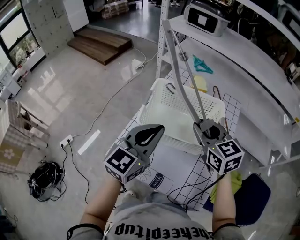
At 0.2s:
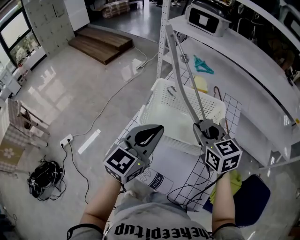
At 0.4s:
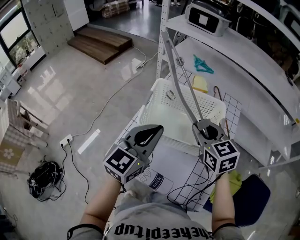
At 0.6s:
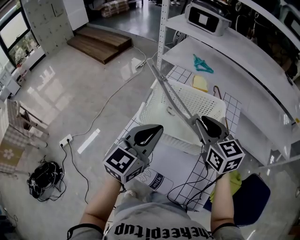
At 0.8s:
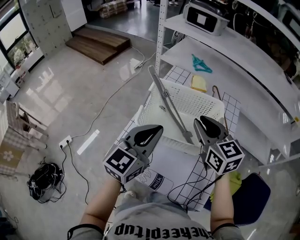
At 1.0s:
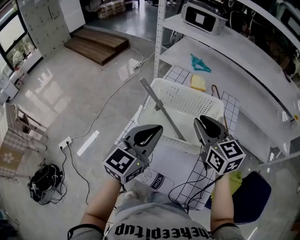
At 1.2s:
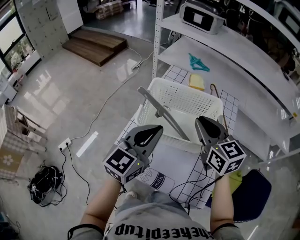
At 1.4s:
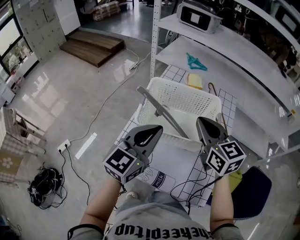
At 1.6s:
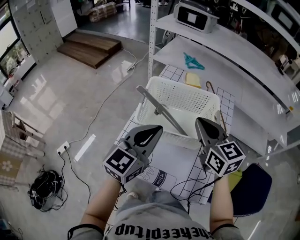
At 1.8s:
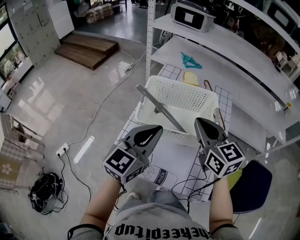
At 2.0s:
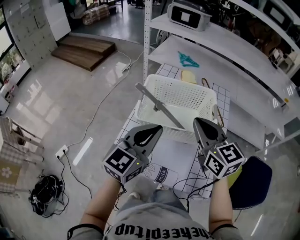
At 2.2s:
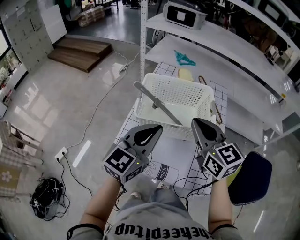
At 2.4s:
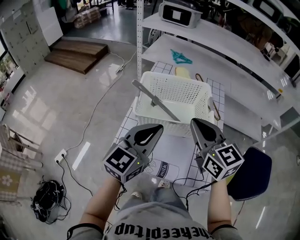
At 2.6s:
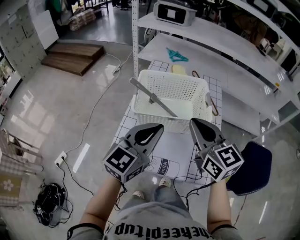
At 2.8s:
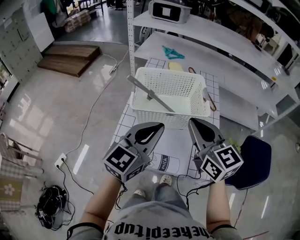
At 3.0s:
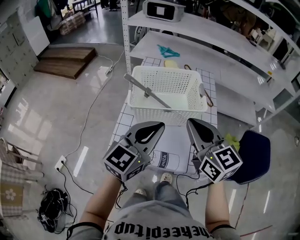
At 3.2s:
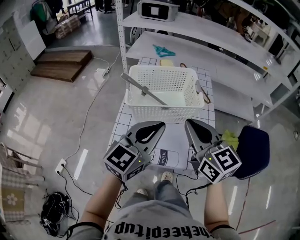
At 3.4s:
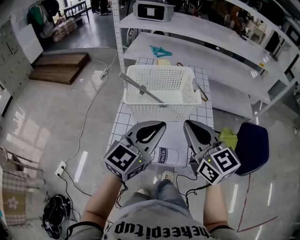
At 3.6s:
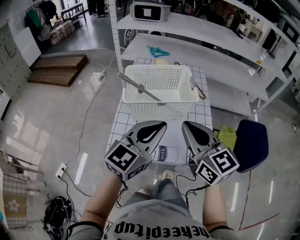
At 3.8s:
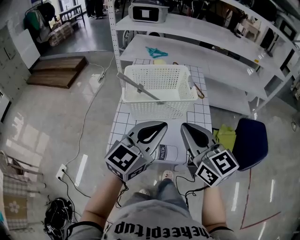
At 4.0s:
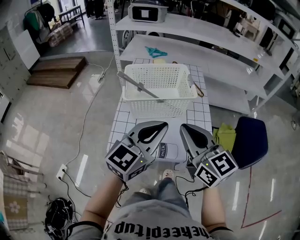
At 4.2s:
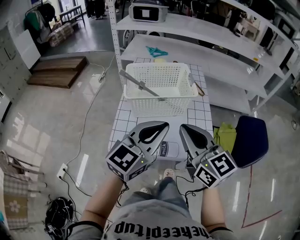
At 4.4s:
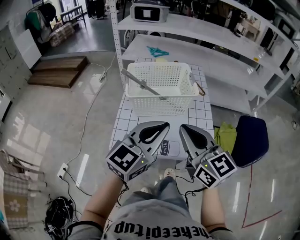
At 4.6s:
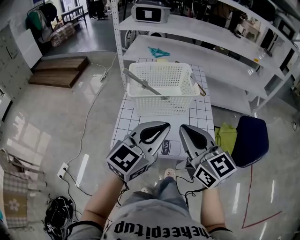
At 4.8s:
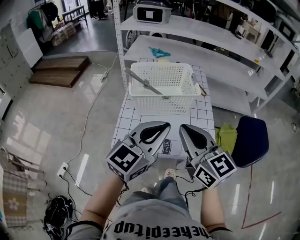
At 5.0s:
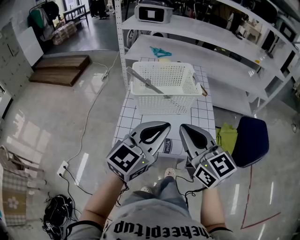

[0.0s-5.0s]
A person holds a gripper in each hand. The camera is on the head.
0.0s to 1.6s: The right gripper closes its fingers.
1.6s to 3.4s: The left gripper is displaced backward by roughly 10 cm; the right gripper shifts about 15 cm backward.
3.4s to 5.0s: The grippers both shift backward by approximately 10 cm.

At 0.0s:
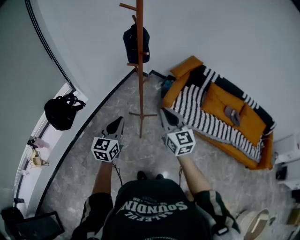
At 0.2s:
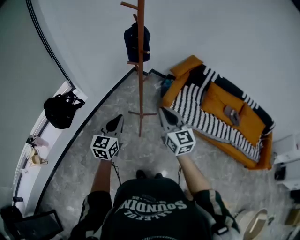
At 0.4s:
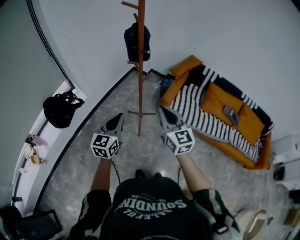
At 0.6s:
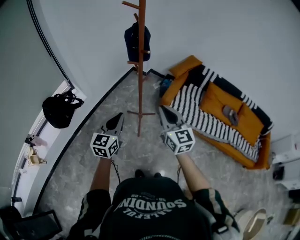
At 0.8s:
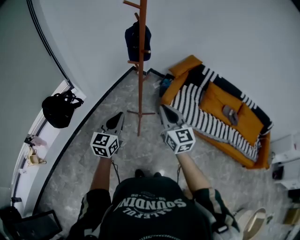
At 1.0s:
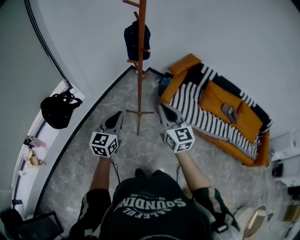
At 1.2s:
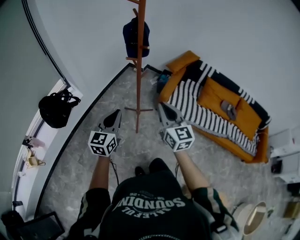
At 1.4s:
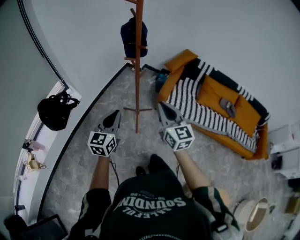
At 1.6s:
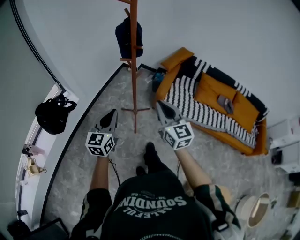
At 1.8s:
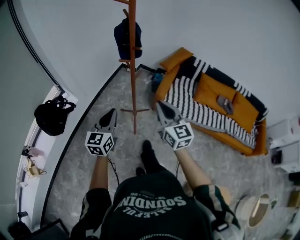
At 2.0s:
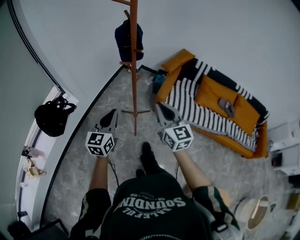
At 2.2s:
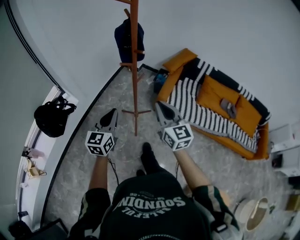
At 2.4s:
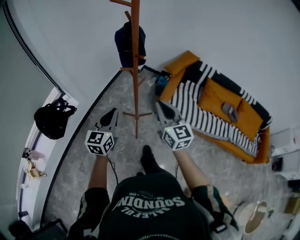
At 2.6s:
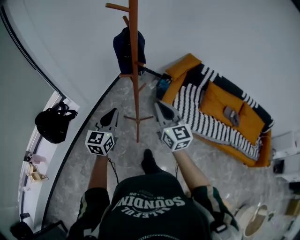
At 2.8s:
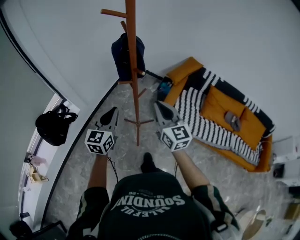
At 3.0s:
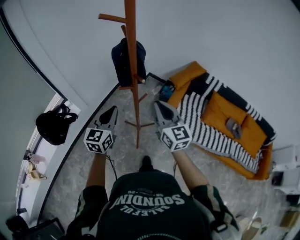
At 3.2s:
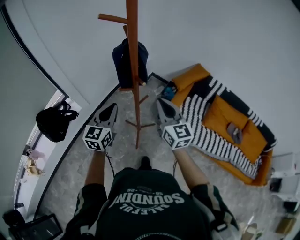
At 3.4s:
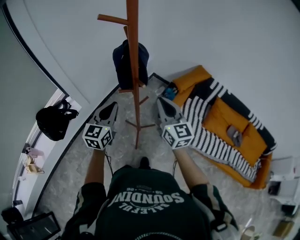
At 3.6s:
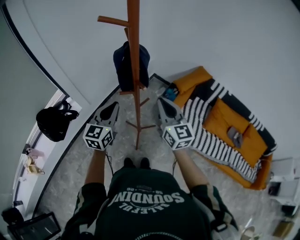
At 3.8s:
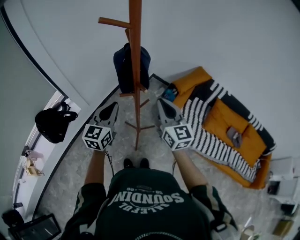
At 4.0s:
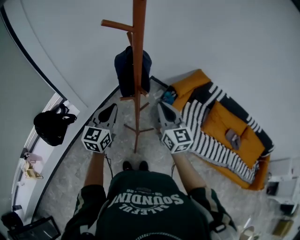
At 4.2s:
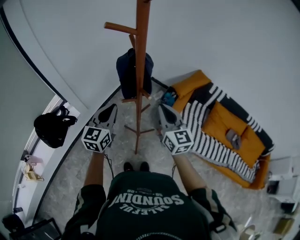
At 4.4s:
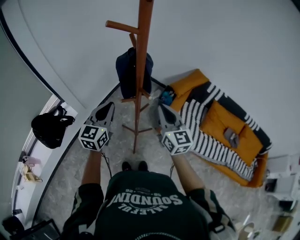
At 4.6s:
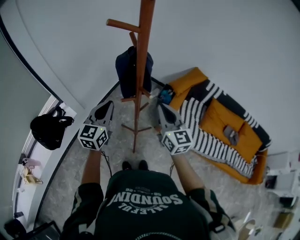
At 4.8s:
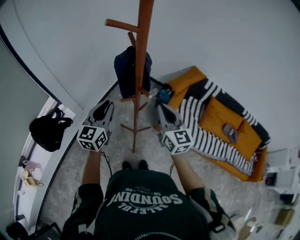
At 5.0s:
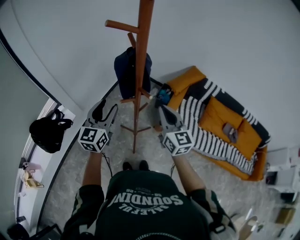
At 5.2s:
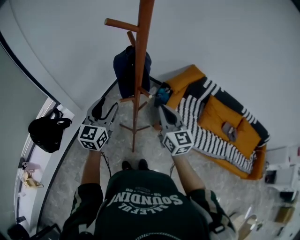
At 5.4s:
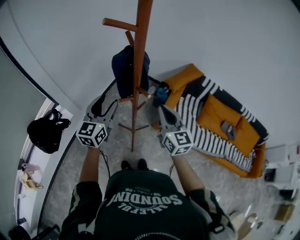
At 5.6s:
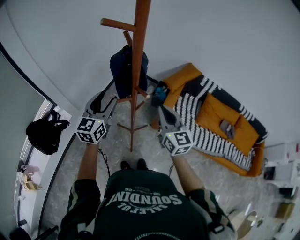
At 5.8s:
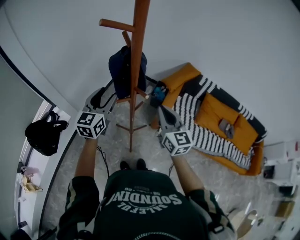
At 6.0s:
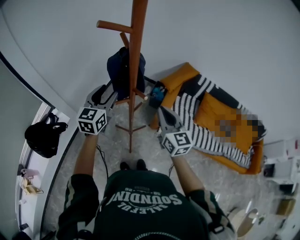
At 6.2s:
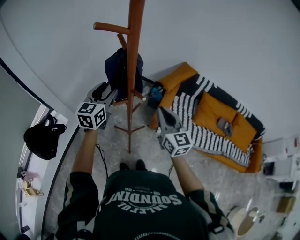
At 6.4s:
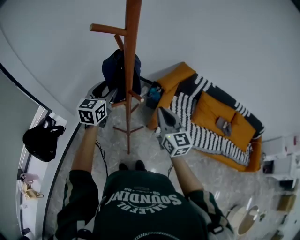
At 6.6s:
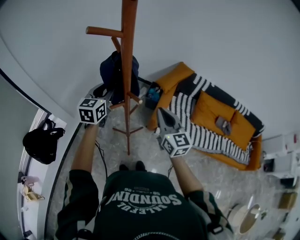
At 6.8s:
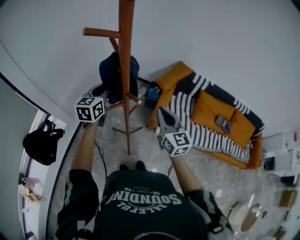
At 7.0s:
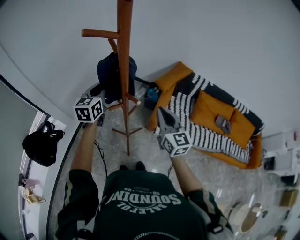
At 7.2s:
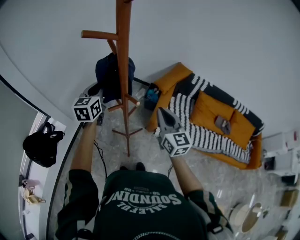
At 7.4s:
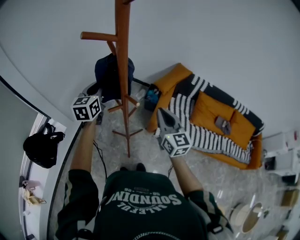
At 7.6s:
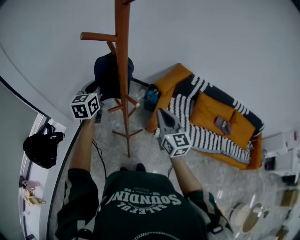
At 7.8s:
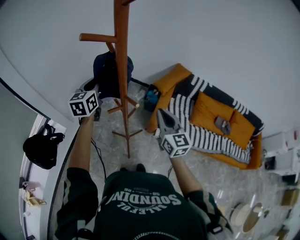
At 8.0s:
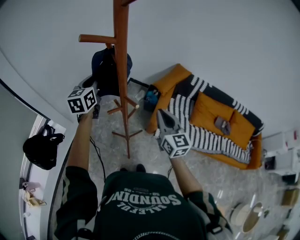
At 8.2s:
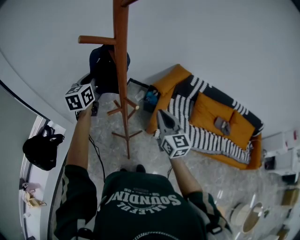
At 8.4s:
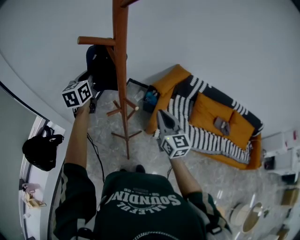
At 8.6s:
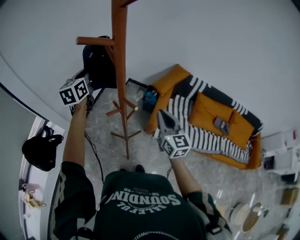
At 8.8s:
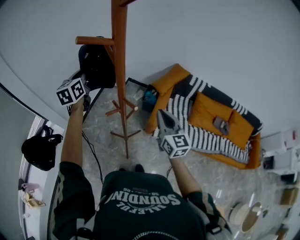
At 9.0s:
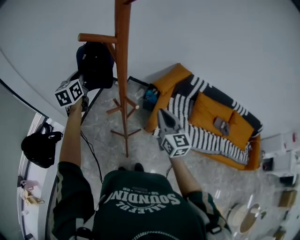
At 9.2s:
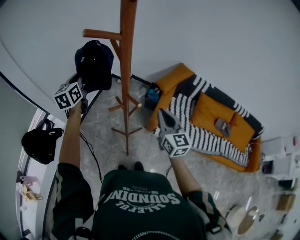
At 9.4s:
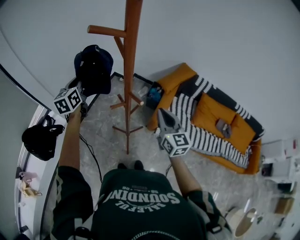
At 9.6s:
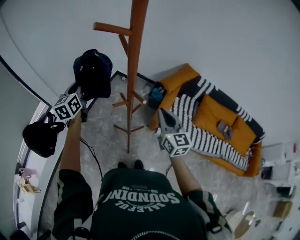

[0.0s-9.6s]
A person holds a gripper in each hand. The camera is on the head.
0.0s to 1.6s: The grippers move only a little.
1.6s to 3.2s: The grippers both shift forward by roughly 25 cm.
3.2s to 4.8s: The left gripper heads forward, covering some 5 cm.
4.8s to 6.4s: The left gripper heads forward, covering some 10 cm, and opens.
6.4s to 8.0s: The left gripper is displaced forward by about 5 cm, and closes.
8.0s to 9.6s: The left gripper moves to the left, some 10 cm.

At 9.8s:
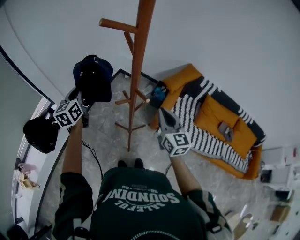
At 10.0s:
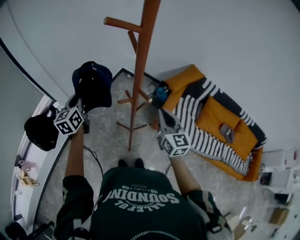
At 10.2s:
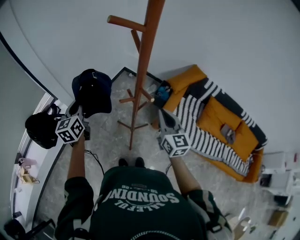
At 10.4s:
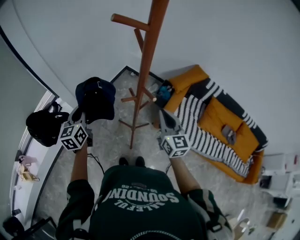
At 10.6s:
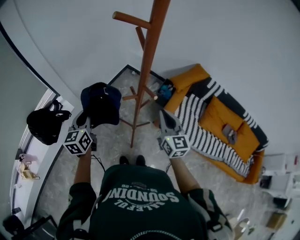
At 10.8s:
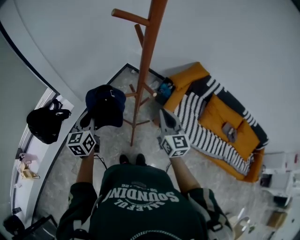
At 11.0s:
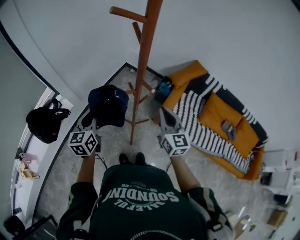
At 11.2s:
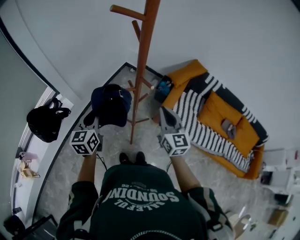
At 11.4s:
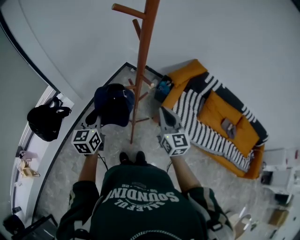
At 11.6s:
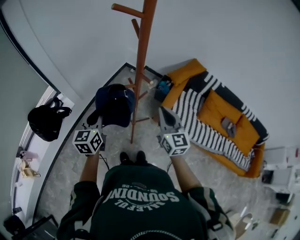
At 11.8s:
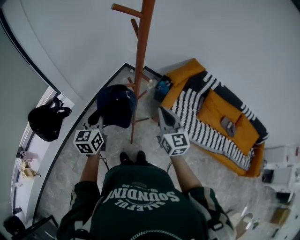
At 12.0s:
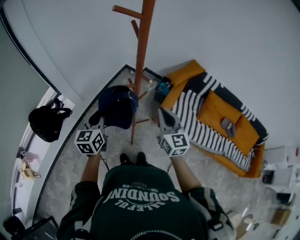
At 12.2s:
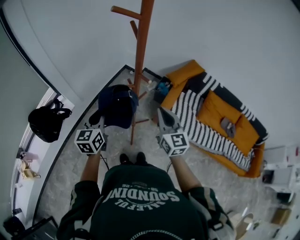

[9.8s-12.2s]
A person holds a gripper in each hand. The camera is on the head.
9.8s to 11.0s: The left gripper travels backward by about 15 cm.
11.0s to 12.2s: The right gripper ends up some 5 cm from where it was; the left gripper moves approximately 5 cm.

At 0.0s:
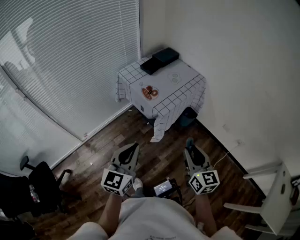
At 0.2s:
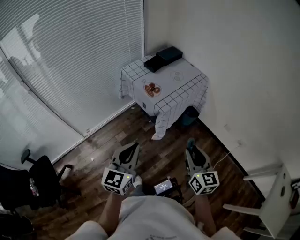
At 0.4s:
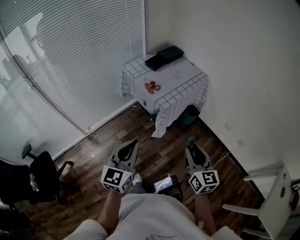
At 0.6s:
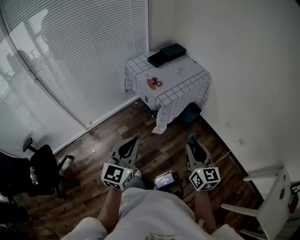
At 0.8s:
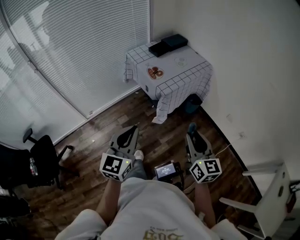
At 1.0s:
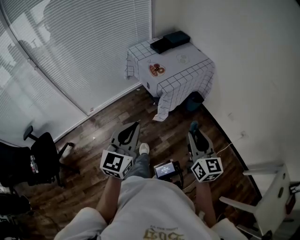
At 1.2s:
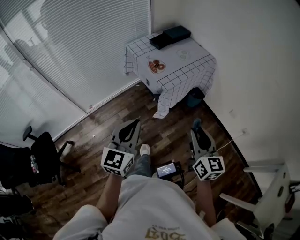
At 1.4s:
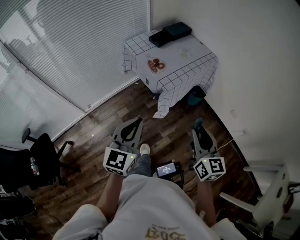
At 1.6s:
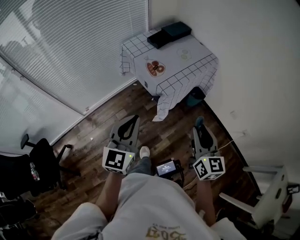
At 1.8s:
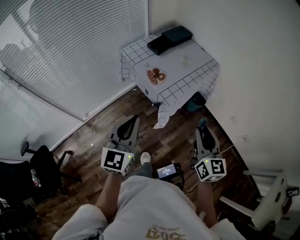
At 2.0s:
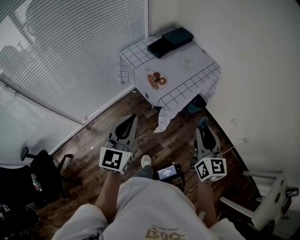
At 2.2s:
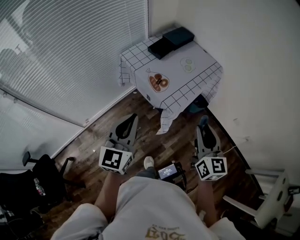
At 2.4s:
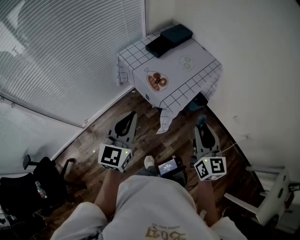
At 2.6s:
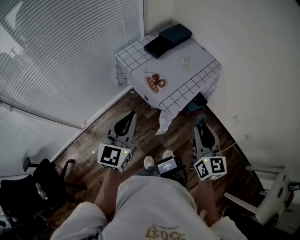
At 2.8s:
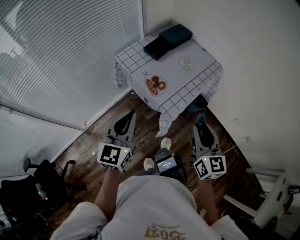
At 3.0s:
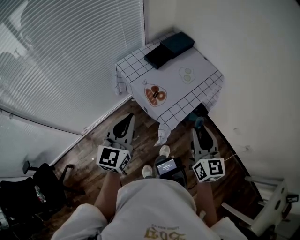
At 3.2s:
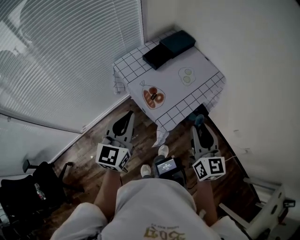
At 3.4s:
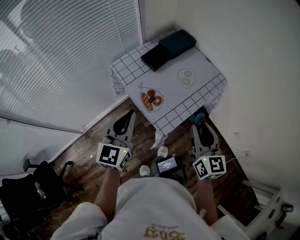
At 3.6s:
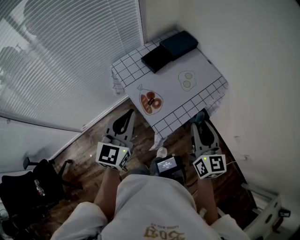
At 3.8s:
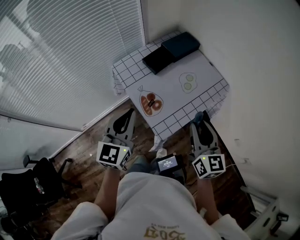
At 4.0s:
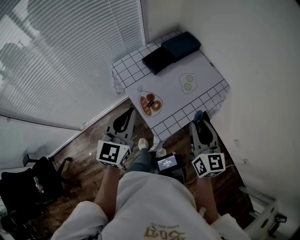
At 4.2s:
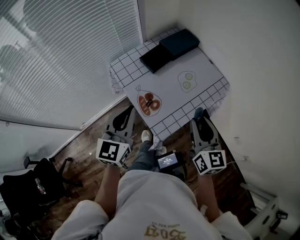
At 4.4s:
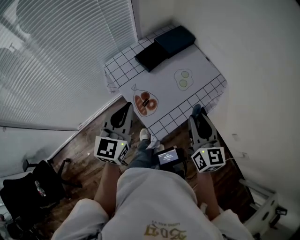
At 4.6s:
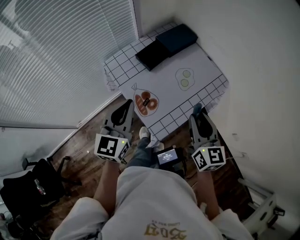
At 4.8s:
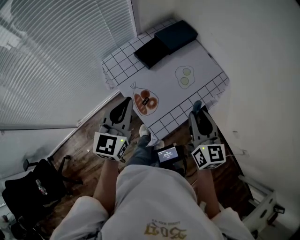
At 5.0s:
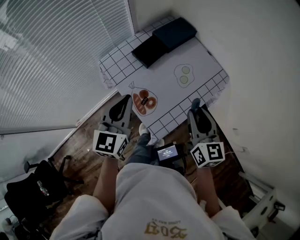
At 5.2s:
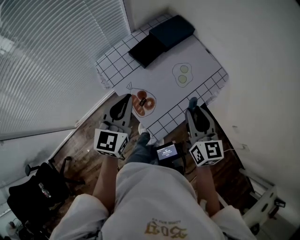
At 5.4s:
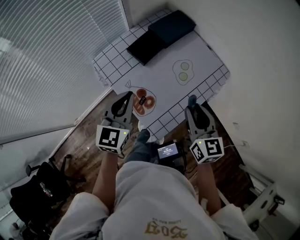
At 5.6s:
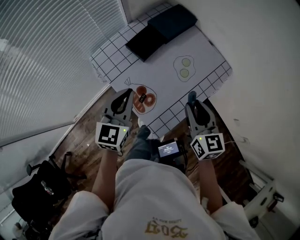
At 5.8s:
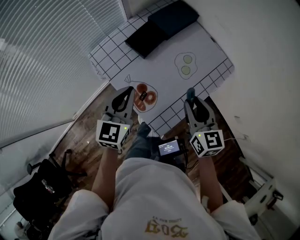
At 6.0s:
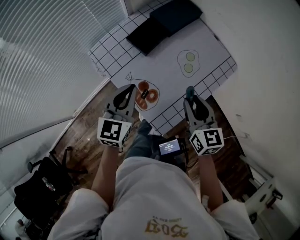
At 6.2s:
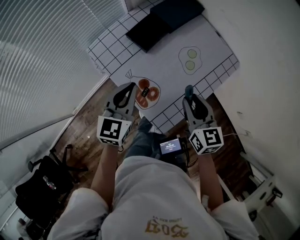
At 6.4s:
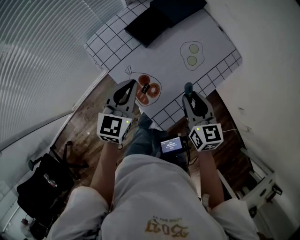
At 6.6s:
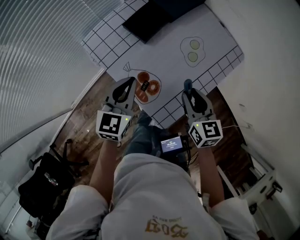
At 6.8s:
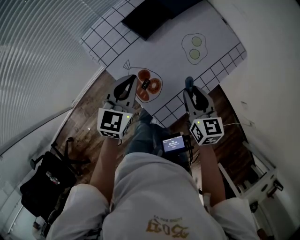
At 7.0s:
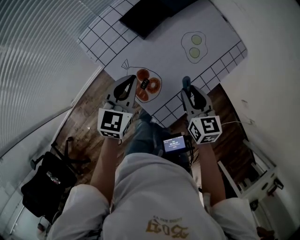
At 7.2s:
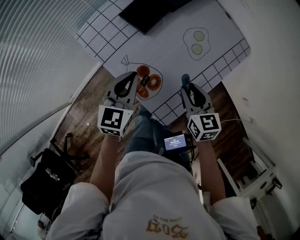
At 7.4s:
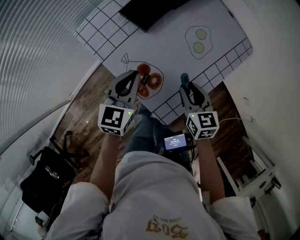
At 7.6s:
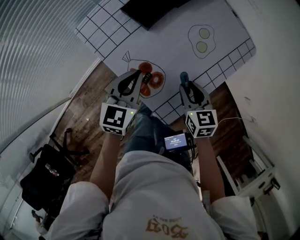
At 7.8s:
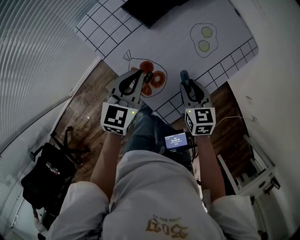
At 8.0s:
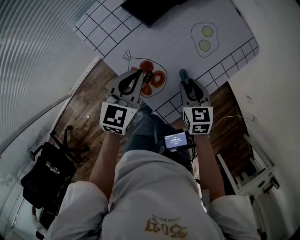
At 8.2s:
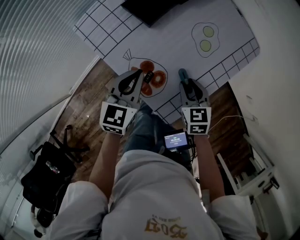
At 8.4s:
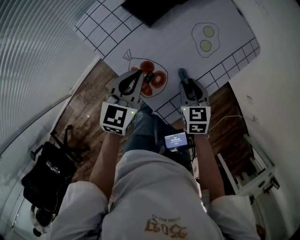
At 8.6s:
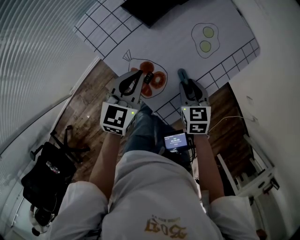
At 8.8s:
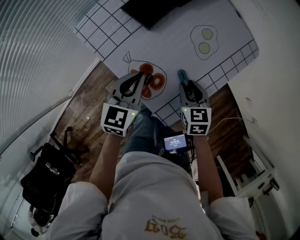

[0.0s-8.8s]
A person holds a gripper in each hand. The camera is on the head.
1.4s to 3.0s: Both grippers travel together forward, some 25 cm.
3.0s to 4.4s: Both grippers move forward, some 15 cm.
4.4s to 5.8s: The two grippers go approximately 10 cm forward and downward.
5.8s to 7.4s: The grippers both shift downward by approximately 15 cm.
7.4s to 8.8s: The grippers move only a little.
